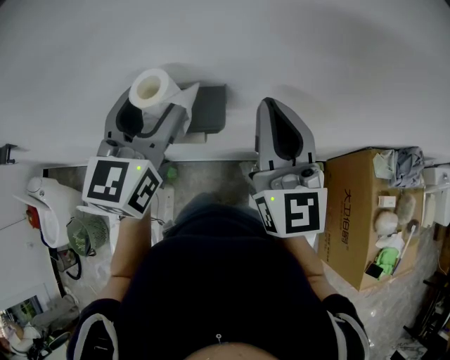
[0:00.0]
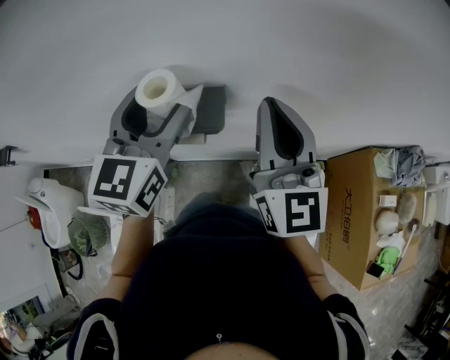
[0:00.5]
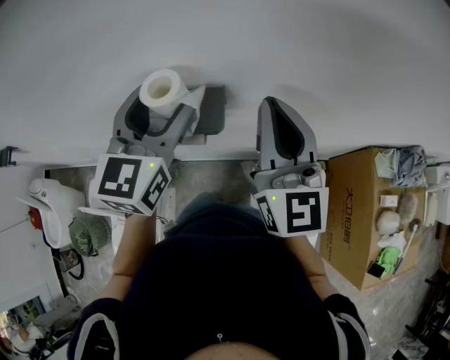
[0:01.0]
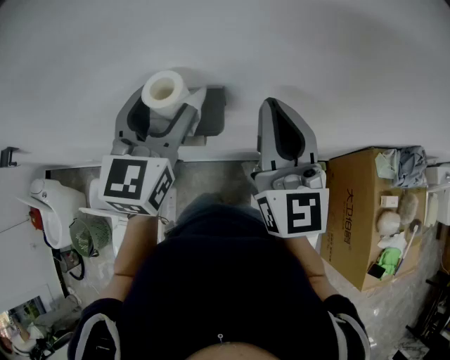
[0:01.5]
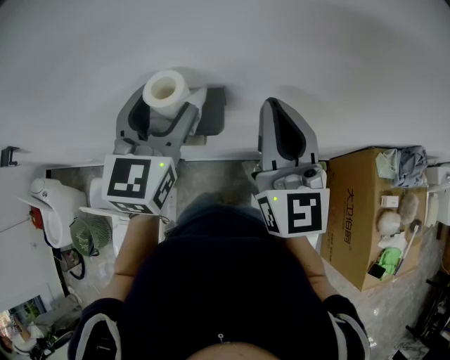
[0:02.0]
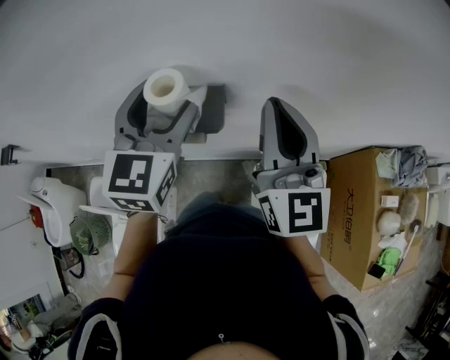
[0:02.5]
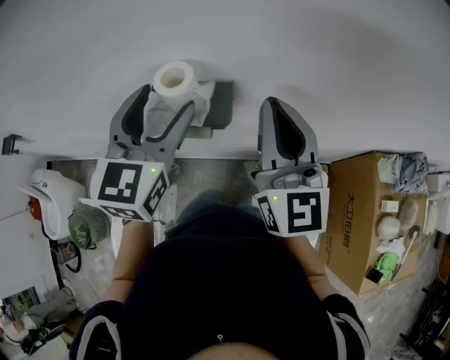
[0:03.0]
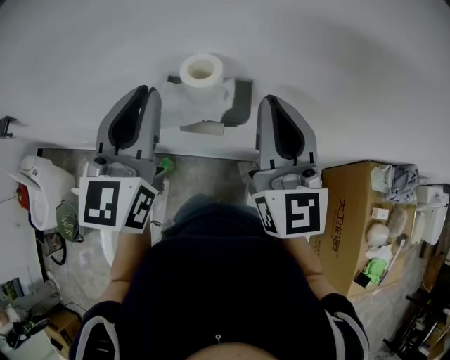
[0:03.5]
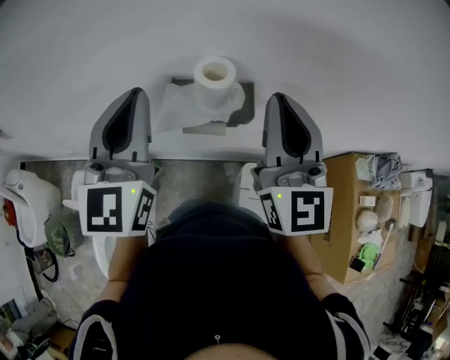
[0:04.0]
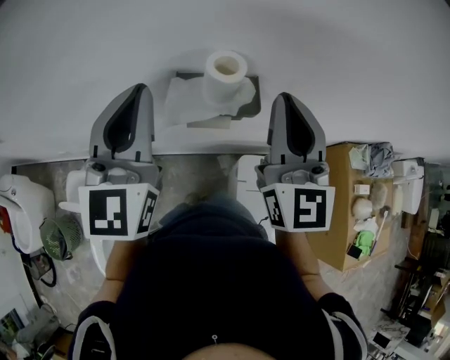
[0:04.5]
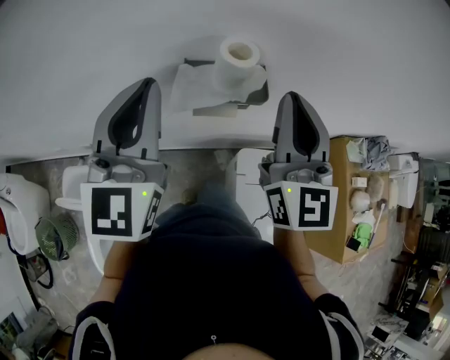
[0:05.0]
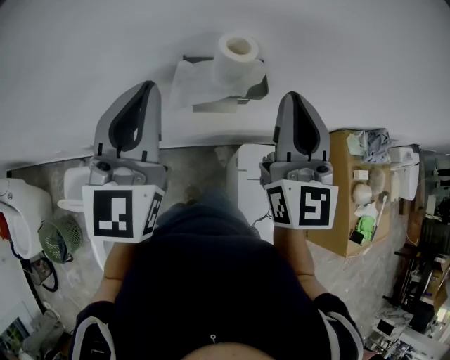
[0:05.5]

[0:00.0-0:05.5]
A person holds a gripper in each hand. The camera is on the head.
0:00.0 to 0:02.0: There are only small adjustments of the grippers.
0:02.0 to 0:03.5: The left gripper moves to the left and backward, some 10 cm, and closes up. The right gripper moves to the left, some 5 cm.
0:03.5 to 0:05.5: The left gripper travels to the left by some 5 cm. The right gripper ends up approximately 5 cm from where it was.

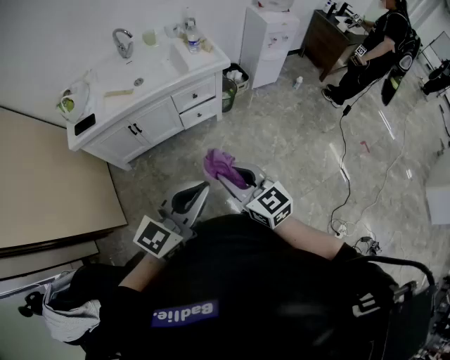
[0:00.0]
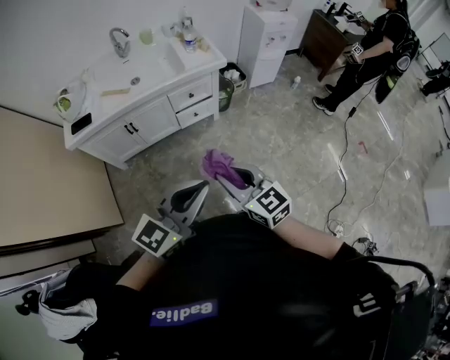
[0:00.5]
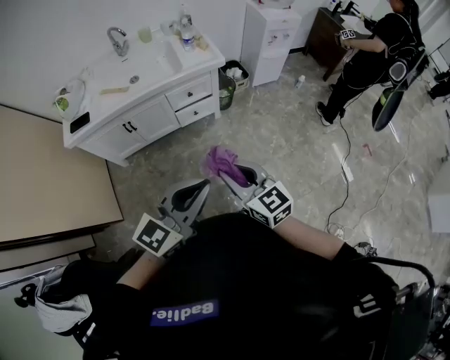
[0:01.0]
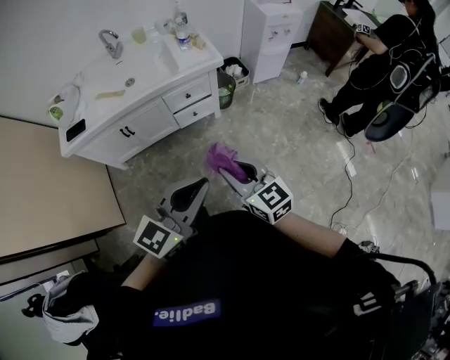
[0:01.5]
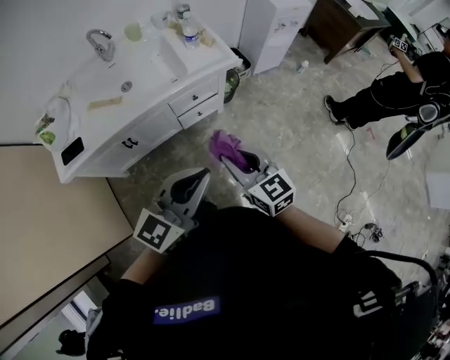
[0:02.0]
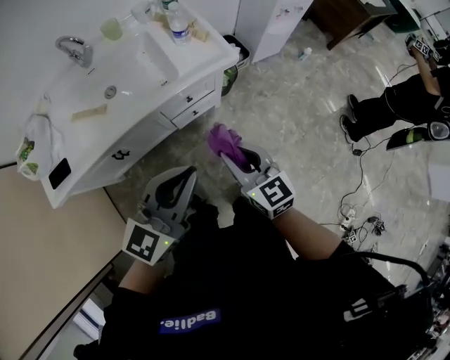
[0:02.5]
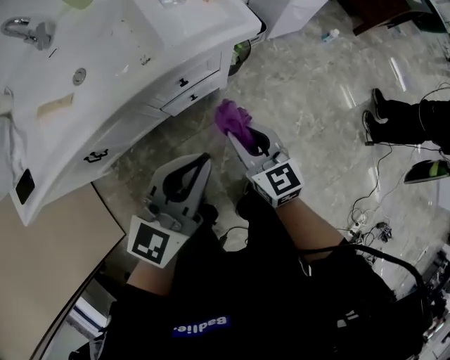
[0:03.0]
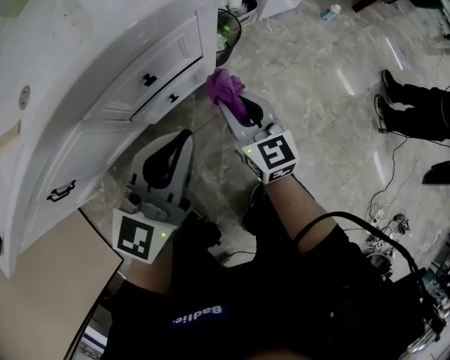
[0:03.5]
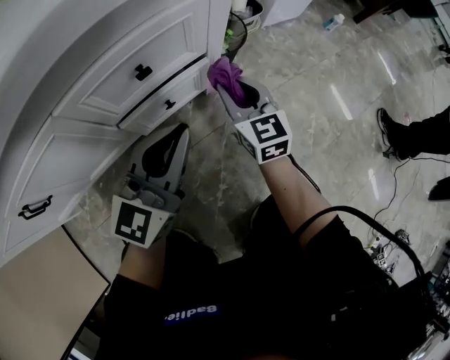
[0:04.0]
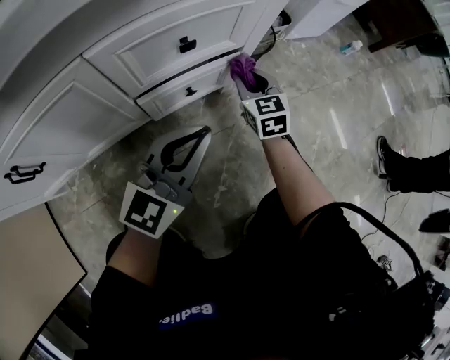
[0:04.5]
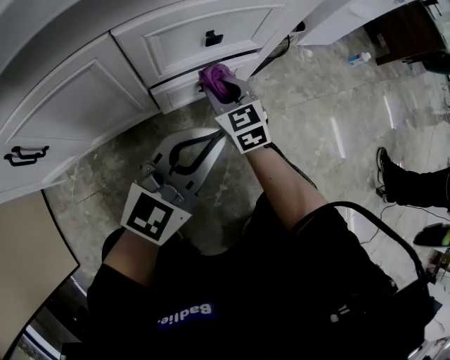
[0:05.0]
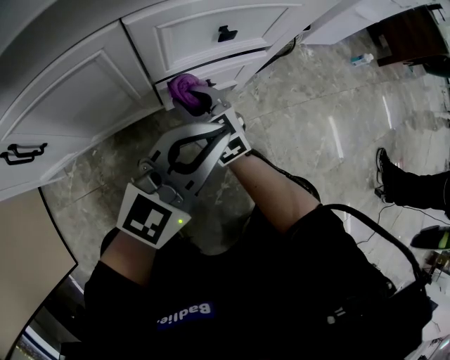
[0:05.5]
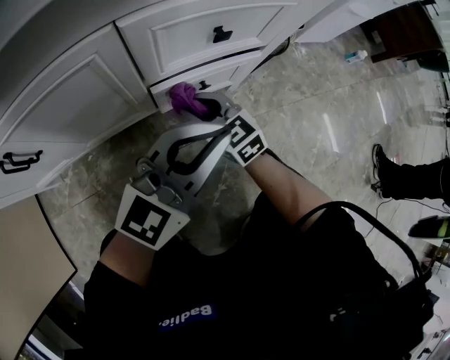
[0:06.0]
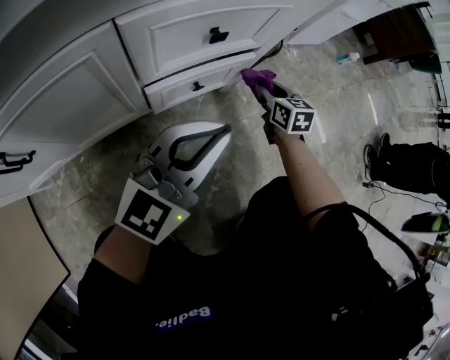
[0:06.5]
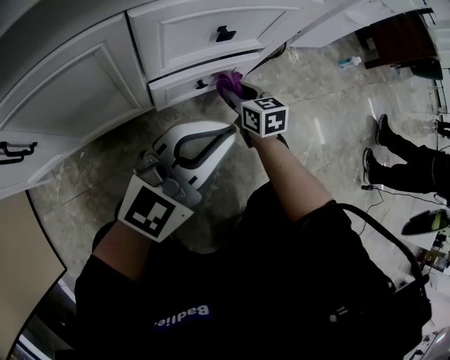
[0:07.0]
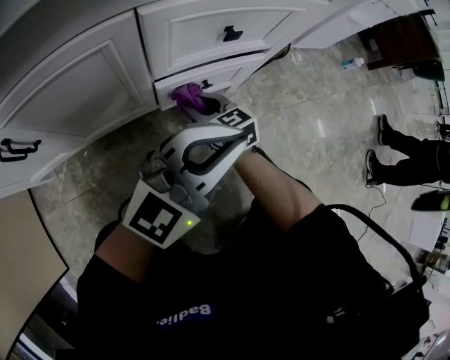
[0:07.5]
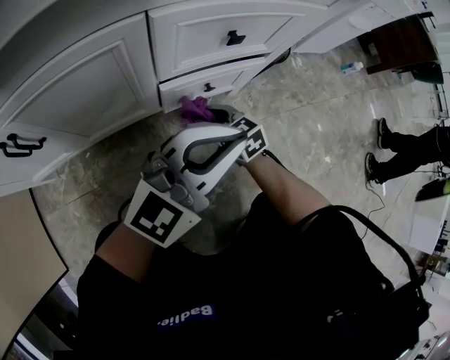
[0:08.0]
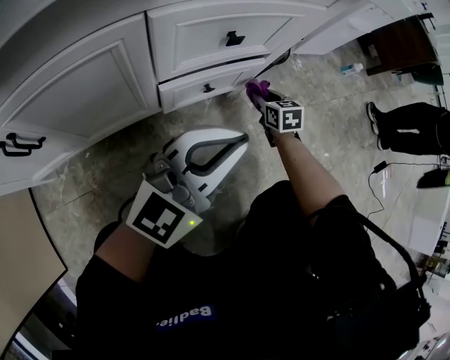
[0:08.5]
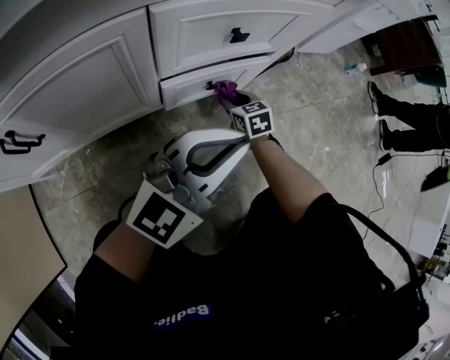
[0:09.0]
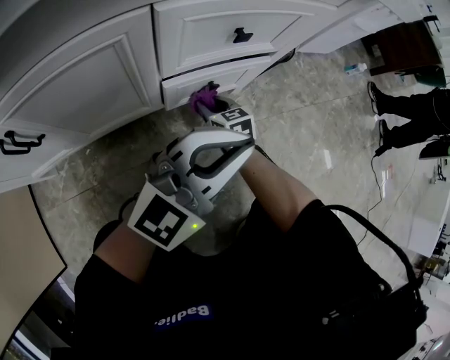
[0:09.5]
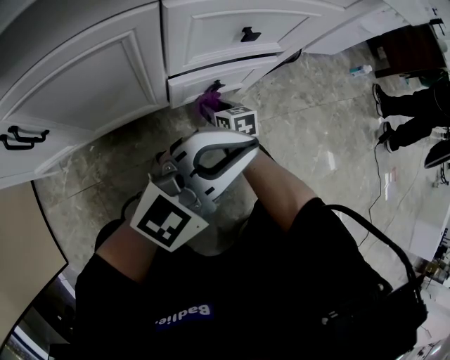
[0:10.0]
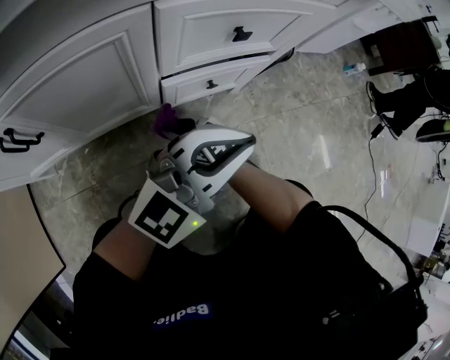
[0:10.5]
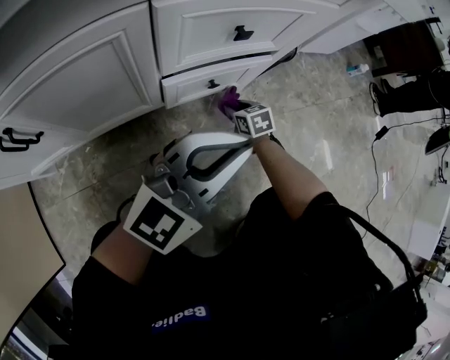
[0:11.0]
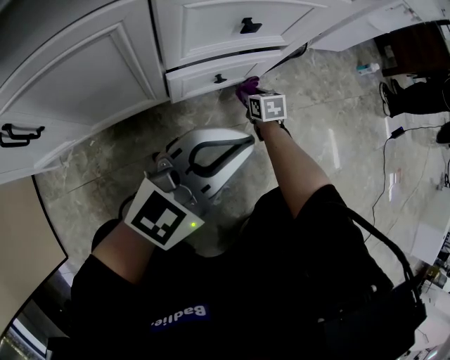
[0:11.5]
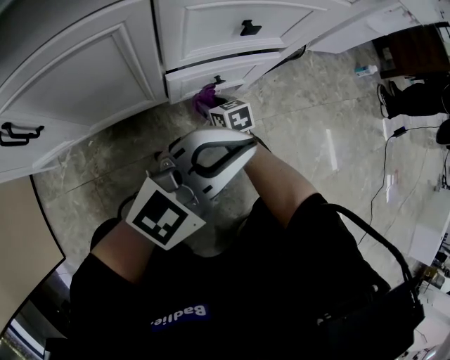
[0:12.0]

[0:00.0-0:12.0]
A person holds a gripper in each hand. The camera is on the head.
0:00.0 to 0:02.0: The grippers both shift forward by roughly 25 cm.
0:02.0 to 0:04.0: The two grippers go approximately 70 cm downward and forward.
0:04.0 to 0:06.0: The right gripper heads to the left and downward, covering some 20 cm, and rotates about 30 degrees. The left gripper moves some 5 cm.
0:06.0 to 0:08.0: The right gripper travels downward by approximately 5 cm, and travels to the right and back again, roughly 20 cm each way.
0:08.0 to 0:10.0: The right gripper heads downward, covering about 5 cm, and moves roughly 15 cm to the right and comes back.
0:10.0 to 0:12.0: The right gripper reaches some 10 cm to the right, then returns.

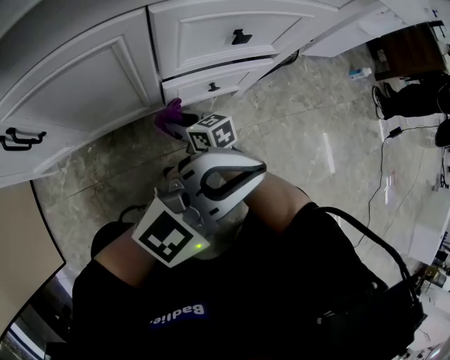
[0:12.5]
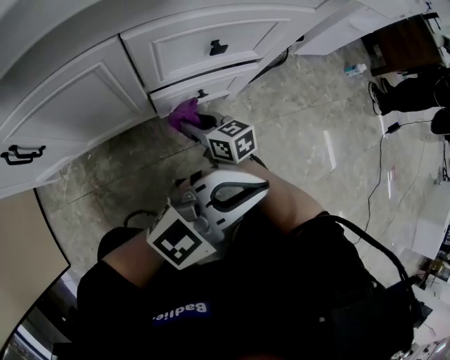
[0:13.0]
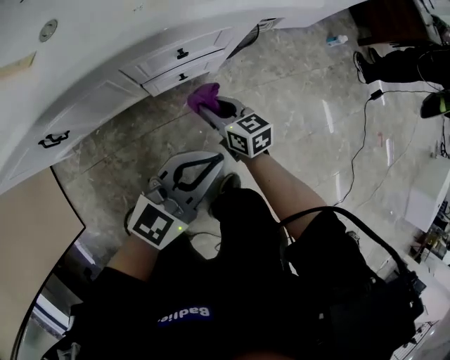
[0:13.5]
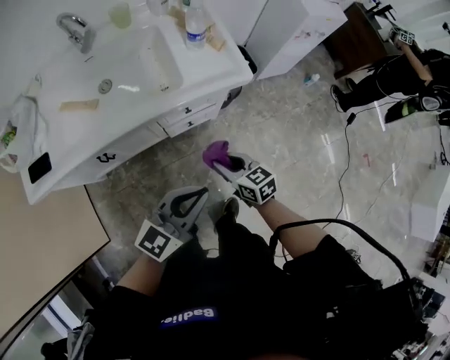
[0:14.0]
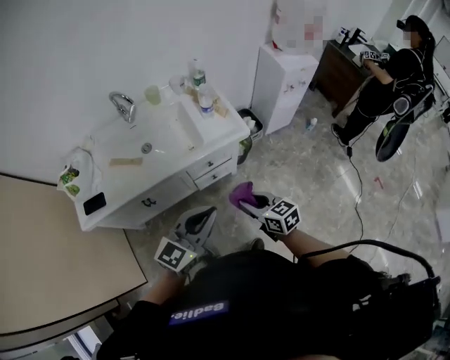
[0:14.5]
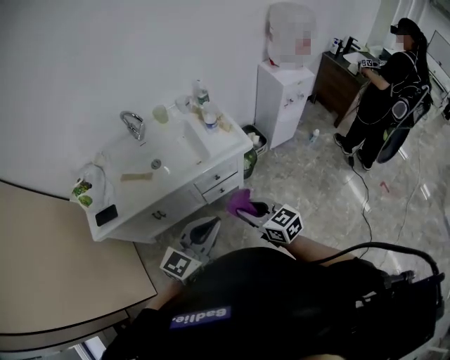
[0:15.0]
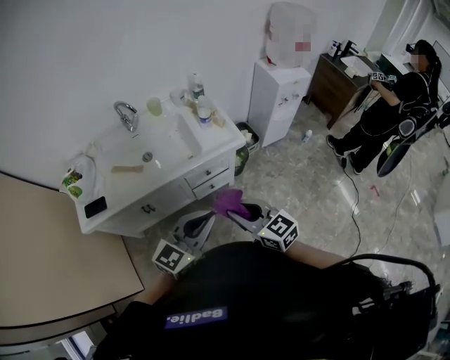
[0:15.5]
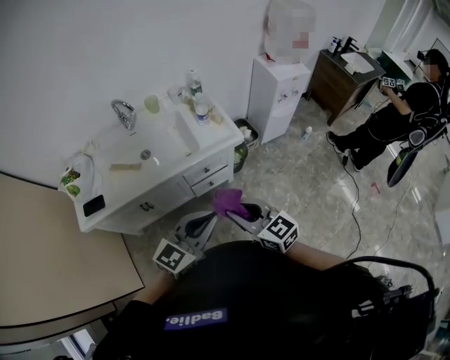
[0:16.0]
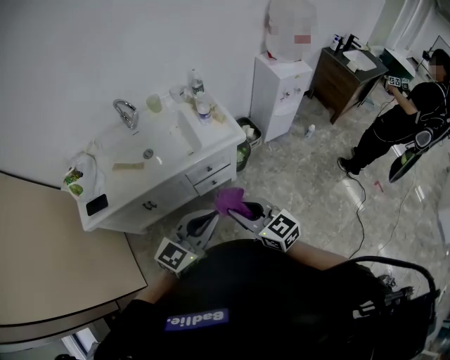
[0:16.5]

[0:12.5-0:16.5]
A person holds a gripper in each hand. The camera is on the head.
0:12.5 to 0:14.5: The grippers both shift upward by approximately 60 cm. The left gripper rotates approximately 20 degrees.
0:14.5 to 0:16.5: The right gripper is displaced upward and backward by approximately 15 cm. The left gripper moves about 5 cm.

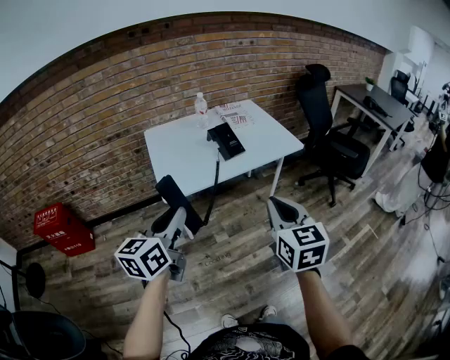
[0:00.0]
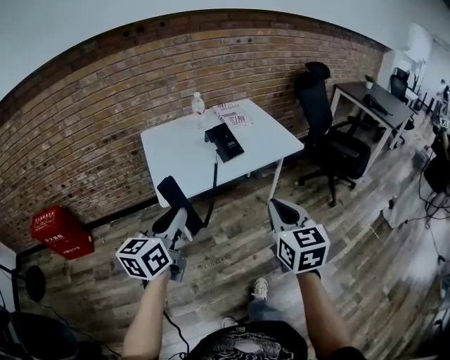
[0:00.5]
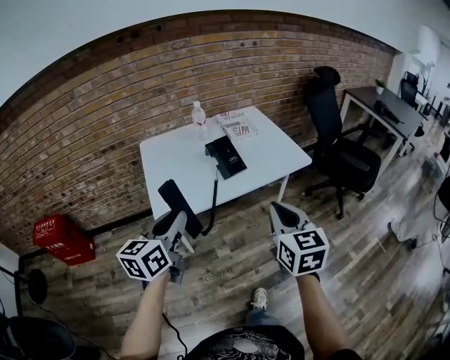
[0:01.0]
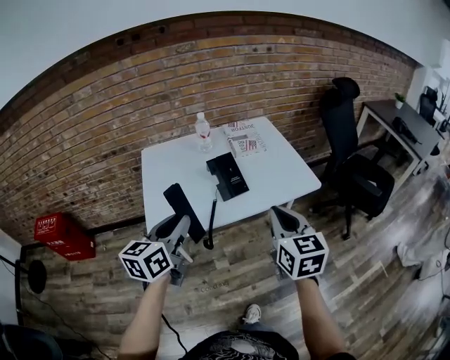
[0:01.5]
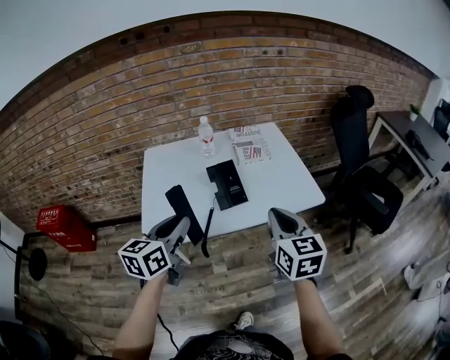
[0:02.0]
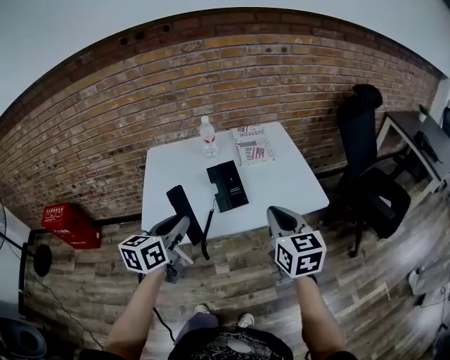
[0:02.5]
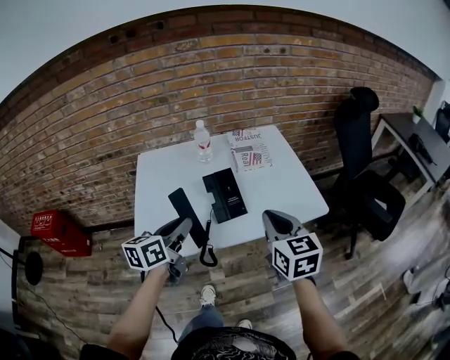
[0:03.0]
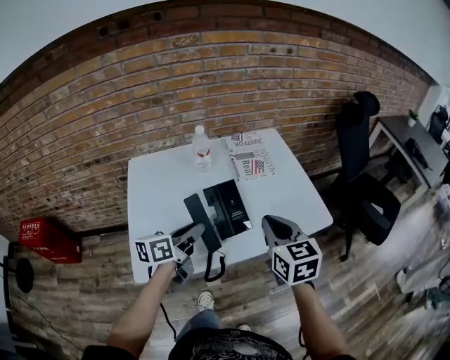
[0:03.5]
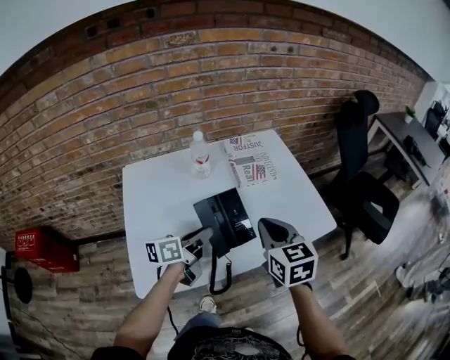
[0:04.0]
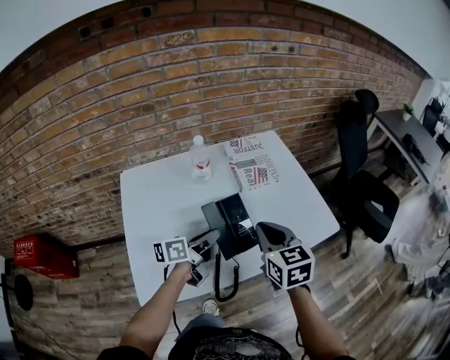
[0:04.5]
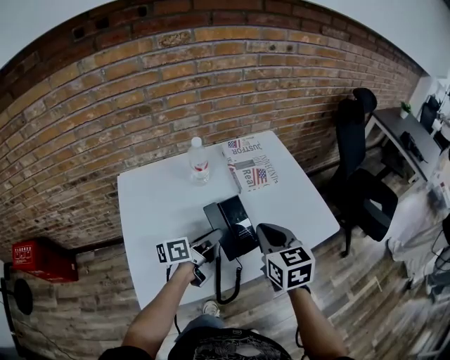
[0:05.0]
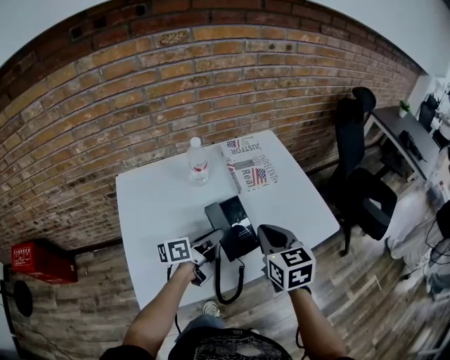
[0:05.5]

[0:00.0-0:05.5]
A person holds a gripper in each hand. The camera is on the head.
0:00.0 to 0:02.0: Both grippers move forward, about 30 cm.
0:02.0 to 0:03.5: The left gripper goes some 20 cm forward and downward, and changes its angle by approximately 30 degrees. The right gripper moves forward and to the left, about 15 cm.
0:03.5 to 0:05.5: The left gripper moves forward and downward, about 10 cm, and swivels approximately 20 degrees; the right gripper heads forward, covering about 5 cm.
